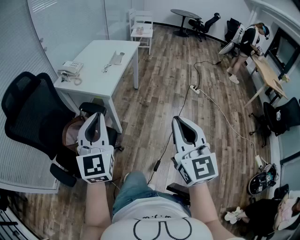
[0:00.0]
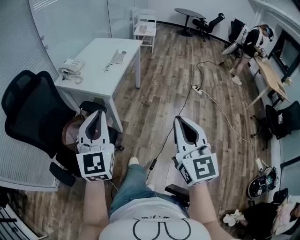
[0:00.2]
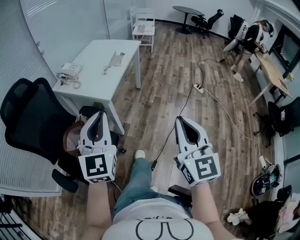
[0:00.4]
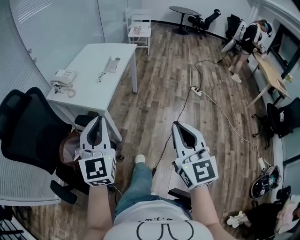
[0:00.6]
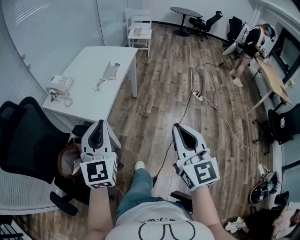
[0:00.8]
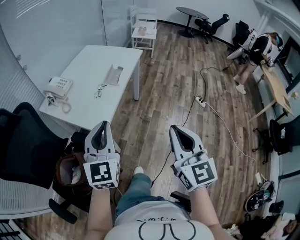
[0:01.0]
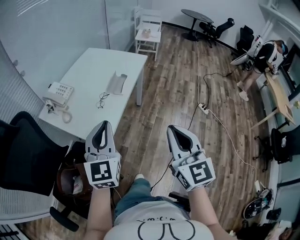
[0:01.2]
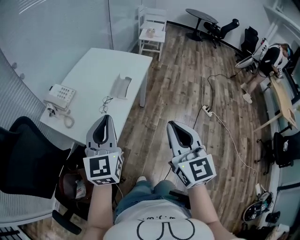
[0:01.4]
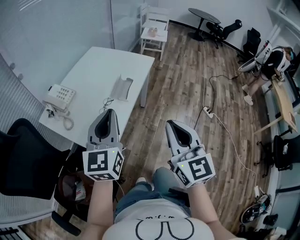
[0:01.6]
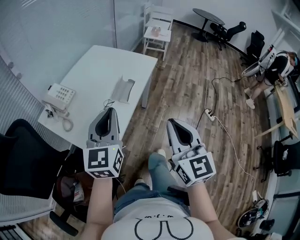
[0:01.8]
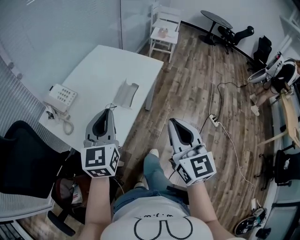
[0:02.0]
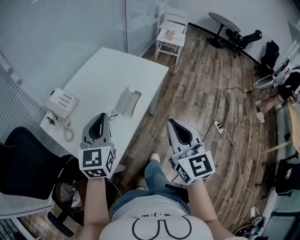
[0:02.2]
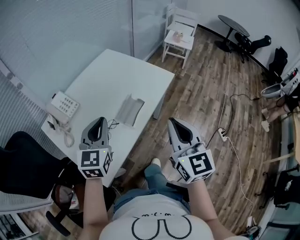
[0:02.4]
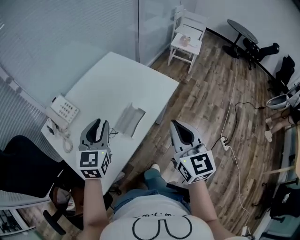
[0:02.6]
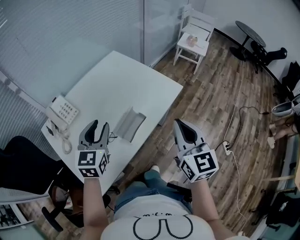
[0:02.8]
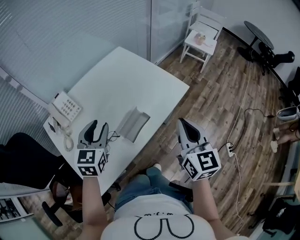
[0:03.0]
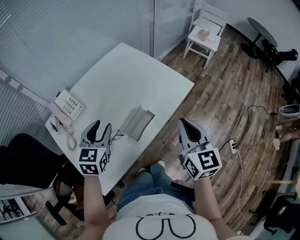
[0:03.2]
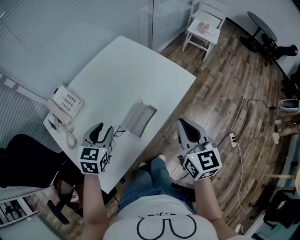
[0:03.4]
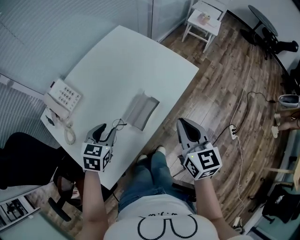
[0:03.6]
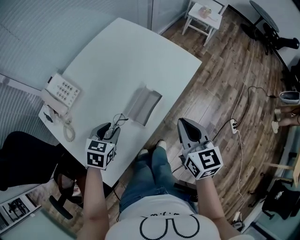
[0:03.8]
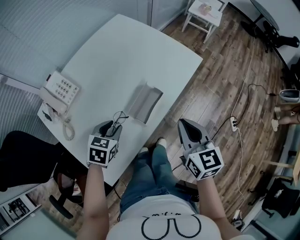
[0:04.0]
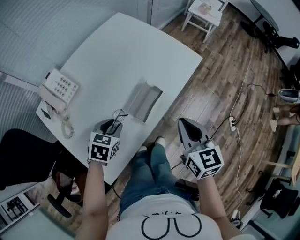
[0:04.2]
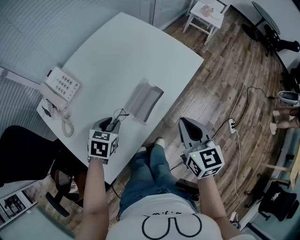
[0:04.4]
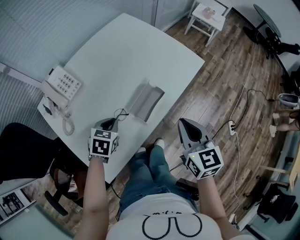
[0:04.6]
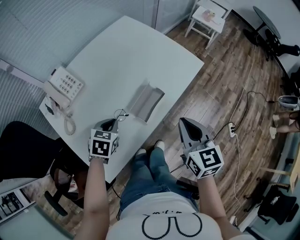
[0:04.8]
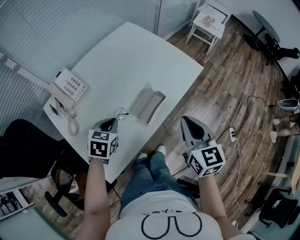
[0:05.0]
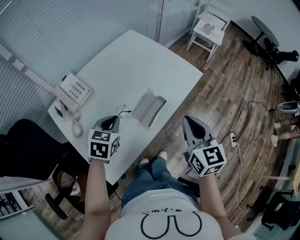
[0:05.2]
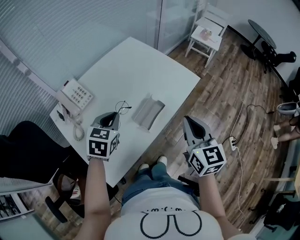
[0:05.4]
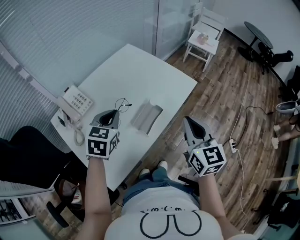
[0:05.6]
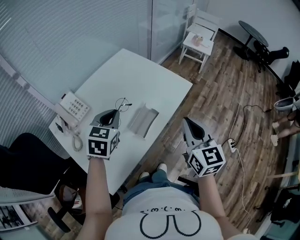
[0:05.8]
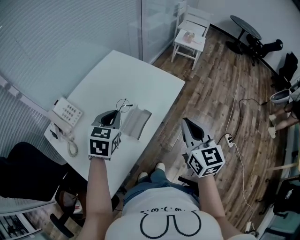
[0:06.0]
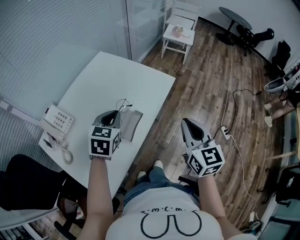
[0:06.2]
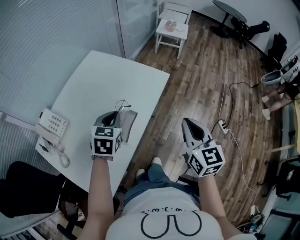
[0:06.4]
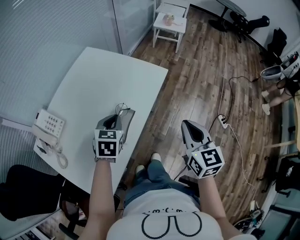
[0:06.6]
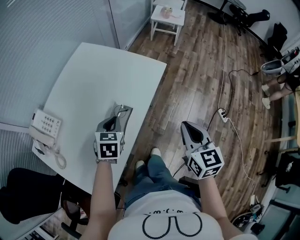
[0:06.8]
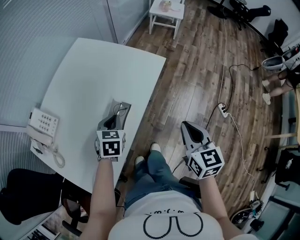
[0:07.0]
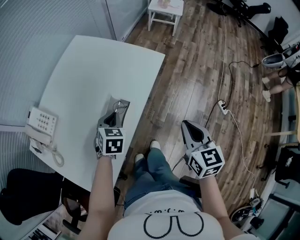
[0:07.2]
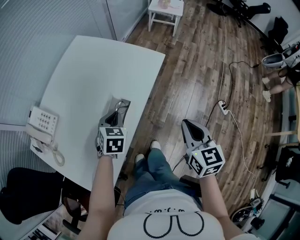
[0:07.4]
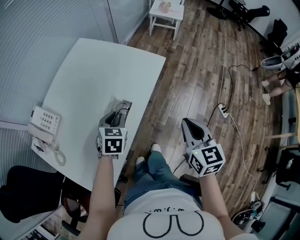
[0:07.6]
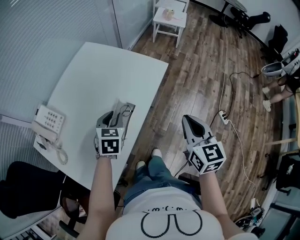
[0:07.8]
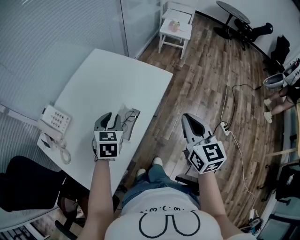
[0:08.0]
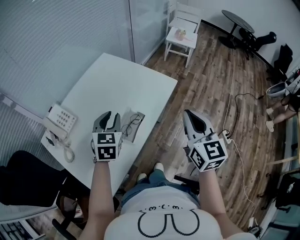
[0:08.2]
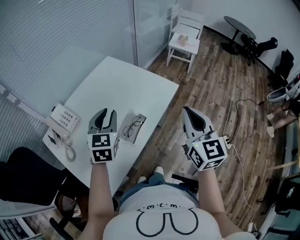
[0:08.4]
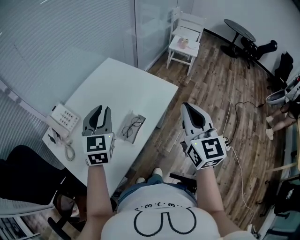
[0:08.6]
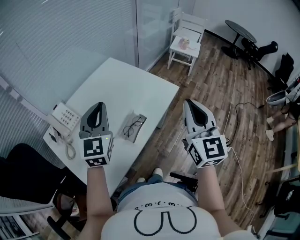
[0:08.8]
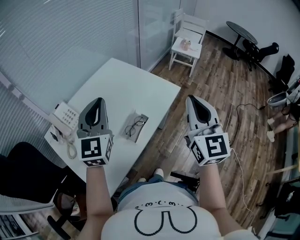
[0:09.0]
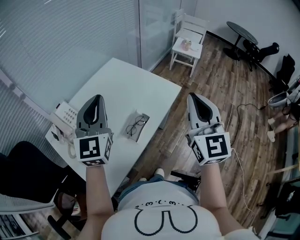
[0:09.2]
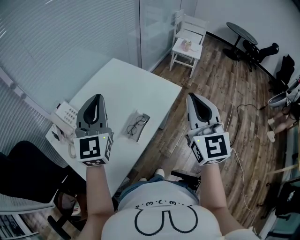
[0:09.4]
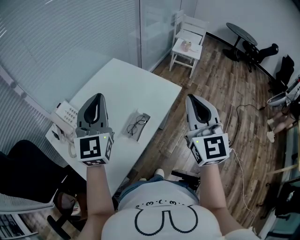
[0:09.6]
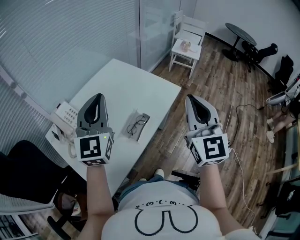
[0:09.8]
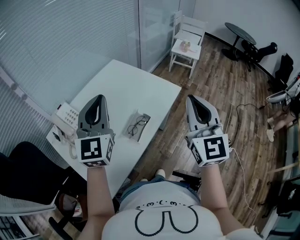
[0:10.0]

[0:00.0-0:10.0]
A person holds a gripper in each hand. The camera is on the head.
0:00.0 to 0:01.4: The pair of grippers is taken forward, roughly 50 cm.
0:01.4 to 0:02.8: The grippers both shift forward by roughly 35 cm. The left gripper rotates about 20 degrees, and opens up.
0:02.8 to 0:04.2: The left gripper travels downward by some 20 cm, and tips its fingers downward by about 30 degrees; the right gripper is displaced downward and to the left by roughly 15 cm.
0:04.2 to 0:05.8: The right gripper goes some 10 cm upward. The left gripper travels upward by about 20 cm, changes its angle by about 20 degrees, and closes its fingers.
0:05.8 to 0:07.2: The right gripper heads to the right and downward, covering about 15 cm, and changes its angle by approximately 20 degrees. Meanwhile the left gripper goes approximately 20 cm downward and to the right.
0:07.2 to 0:08.6: The two grippers go about 20 cm upward. The right gripper changes its angle by approximately 30 degrees, while the left gripper tips its fingers upward by some 40 degrees.
0:08.6 to 0:10.0: The left gripper travels upward by roughly 10 cm; the right gripper shifts by about 5 cm.

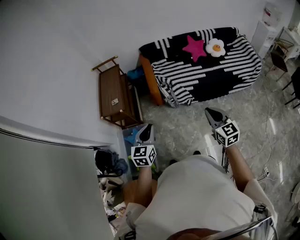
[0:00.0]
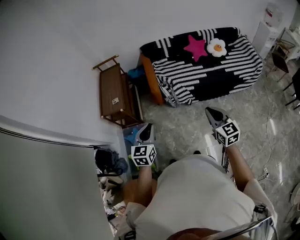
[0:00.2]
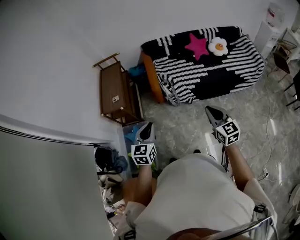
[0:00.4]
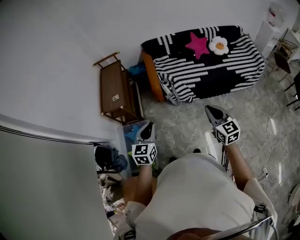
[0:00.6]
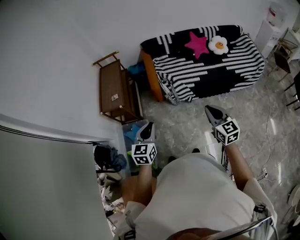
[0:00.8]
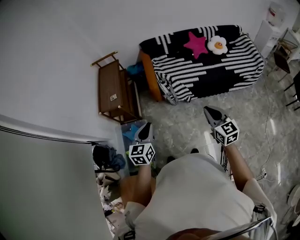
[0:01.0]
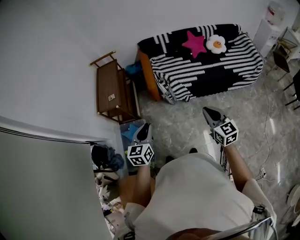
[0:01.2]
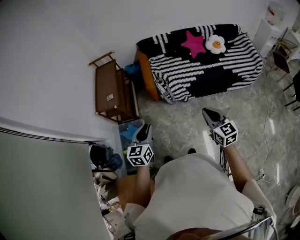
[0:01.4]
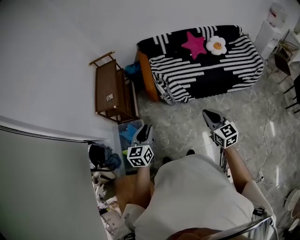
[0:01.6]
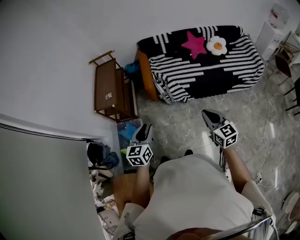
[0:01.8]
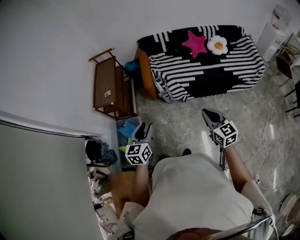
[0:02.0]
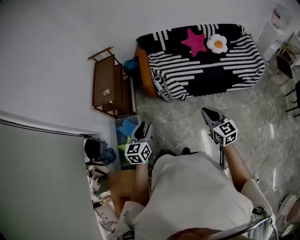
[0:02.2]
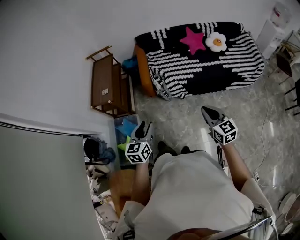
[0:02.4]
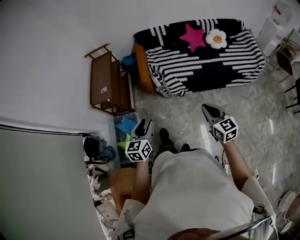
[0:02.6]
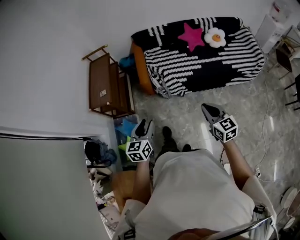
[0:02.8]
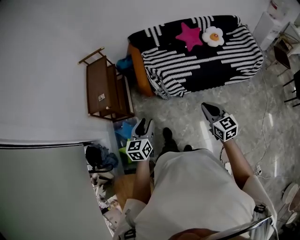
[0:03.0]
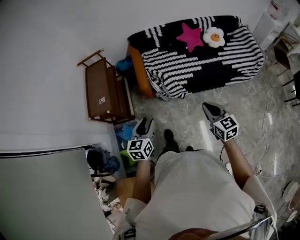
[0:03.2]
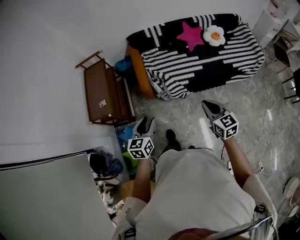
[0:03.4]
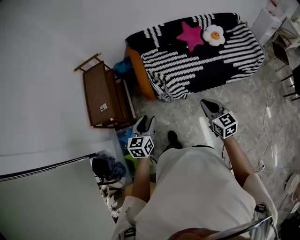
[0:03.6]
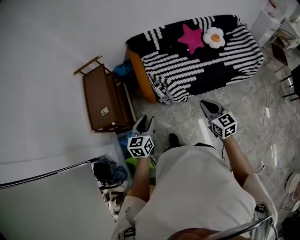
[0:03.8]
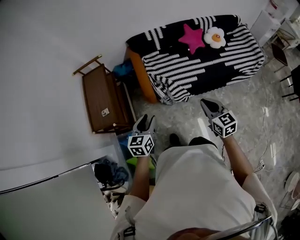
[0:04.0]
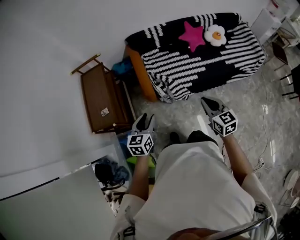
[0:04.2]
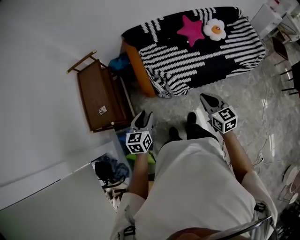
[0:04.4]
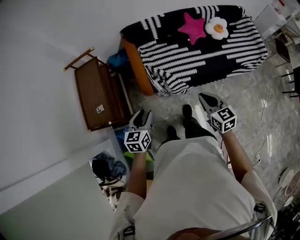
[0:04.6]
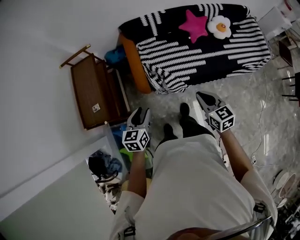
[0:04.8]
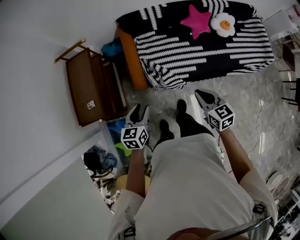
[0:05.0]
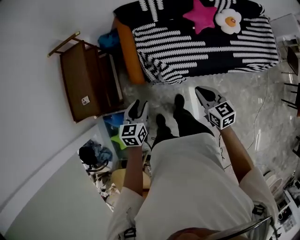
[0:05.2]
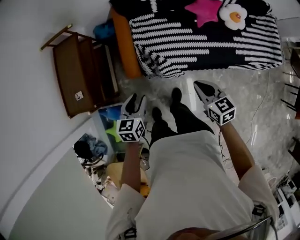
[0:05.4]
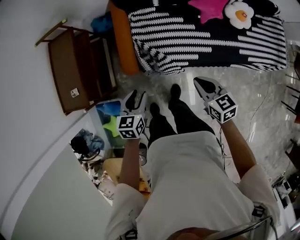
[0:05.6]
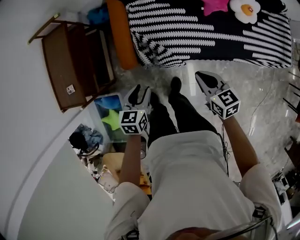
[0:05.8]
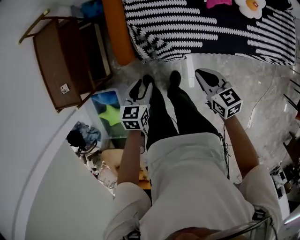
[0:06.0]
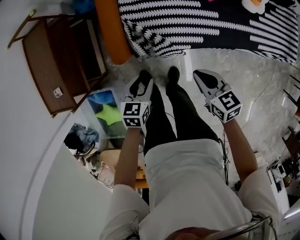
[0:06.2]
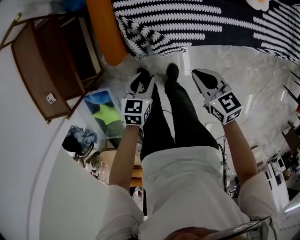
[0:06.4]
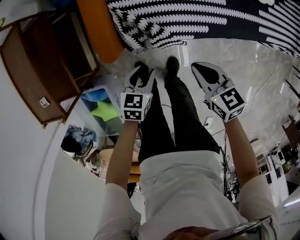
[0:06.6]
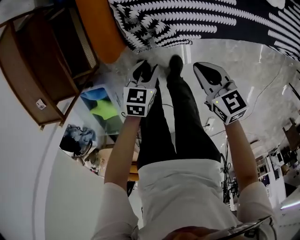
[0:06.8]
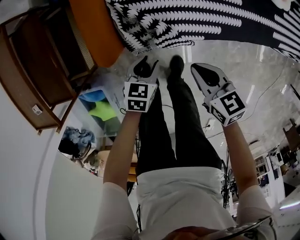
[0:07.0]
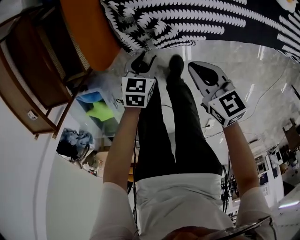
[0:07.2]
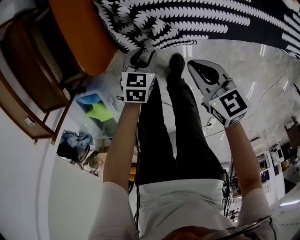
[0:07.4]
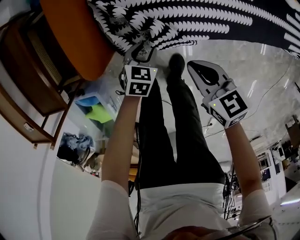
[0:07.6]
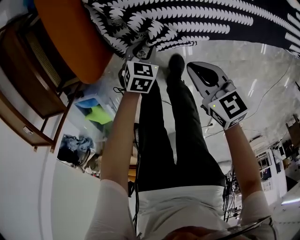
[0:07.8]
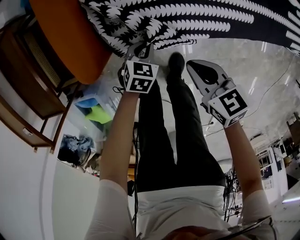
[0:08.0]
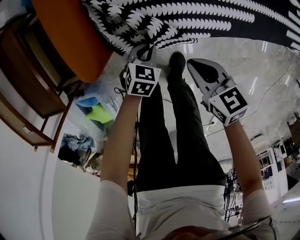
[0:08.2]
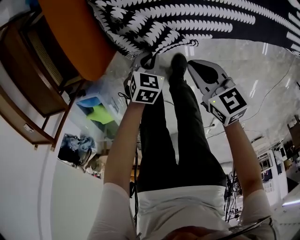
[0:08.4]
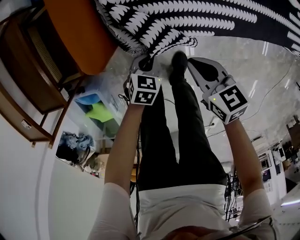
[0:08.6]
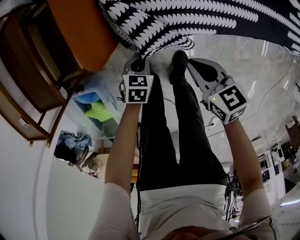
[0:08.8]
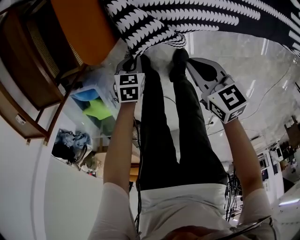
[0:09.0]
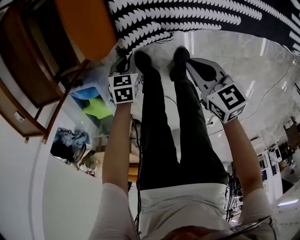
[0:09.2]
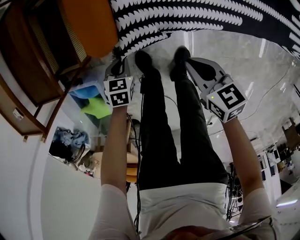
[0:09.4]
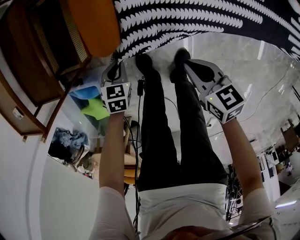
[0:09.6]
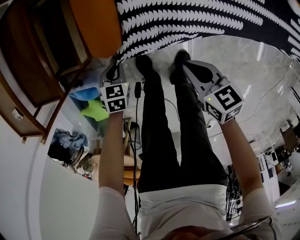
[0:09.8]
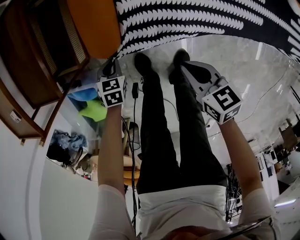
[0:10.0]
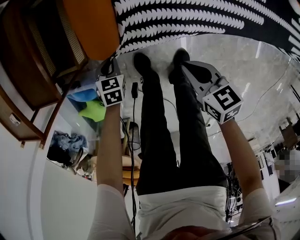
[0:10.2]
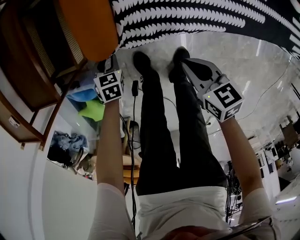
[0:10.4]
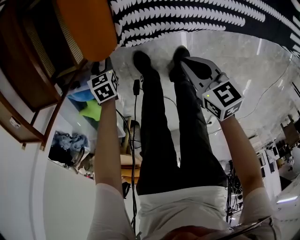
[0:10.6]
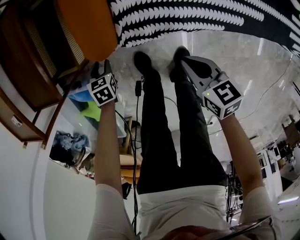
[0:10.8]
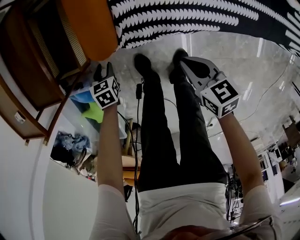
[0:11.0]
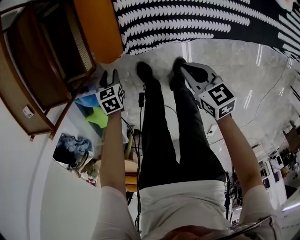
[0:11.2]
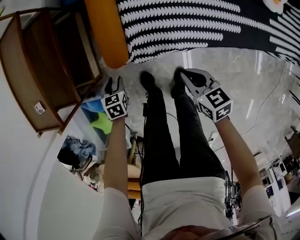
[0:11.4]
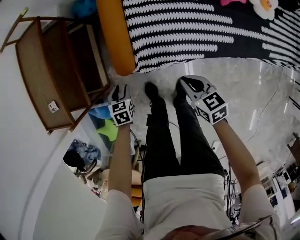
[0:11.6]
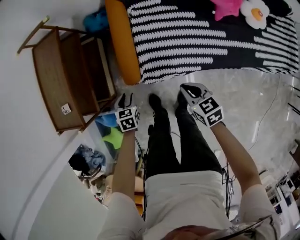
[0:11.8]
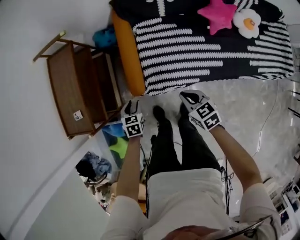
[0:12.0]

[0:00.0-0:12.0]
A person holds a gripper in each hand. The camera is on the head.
0:00.0 to 0:01.6: Both grippers travel together to the right, some 5 cm.
0:01.6 to 0:03.0: The grippers both shift forward by about 10 cm.
0:03.0 to 0:04.4: The two grippers go roughly 25 cm forward and to the left.
0:04.4 to 0:06.0: The right gripper travels downward and forward by about 35 cm, and changes its angle by about 30 degrees, while the left gripper goes some 35 cm downward, forward and to the right.
0:06.0 to 0:07.6: Both grippers move downward, some 35 cm. The left gripper swivels approximately 20 degrees.
0:07.6 to 0:09.0: The left gripper moves some 5 cm, and closes up.
0:09.0 to 0:10.4: The left gripper travels to the left and forward by about 10 cm.
0:10.4 to 0:12.0: Both grippers travel together upward, roughly 30 cm.

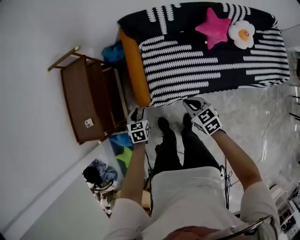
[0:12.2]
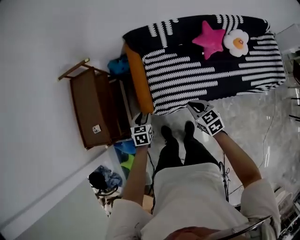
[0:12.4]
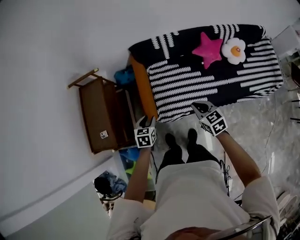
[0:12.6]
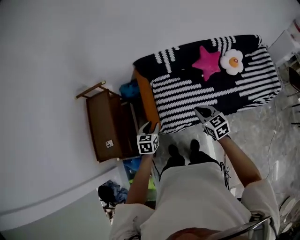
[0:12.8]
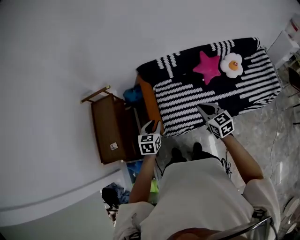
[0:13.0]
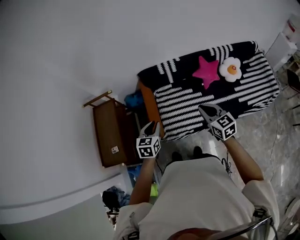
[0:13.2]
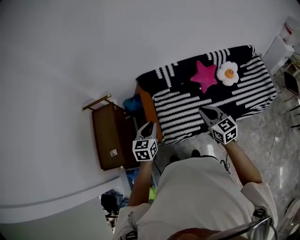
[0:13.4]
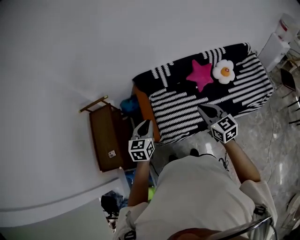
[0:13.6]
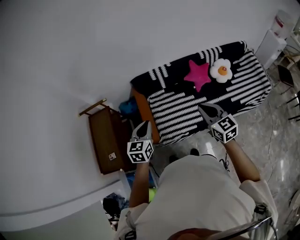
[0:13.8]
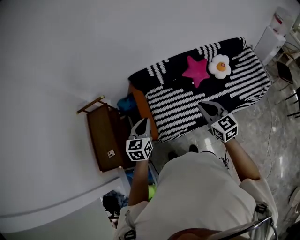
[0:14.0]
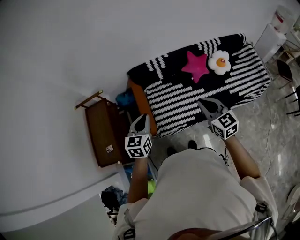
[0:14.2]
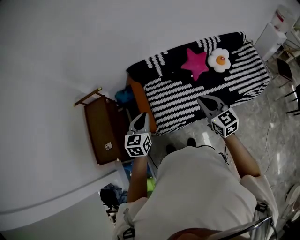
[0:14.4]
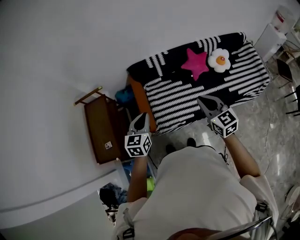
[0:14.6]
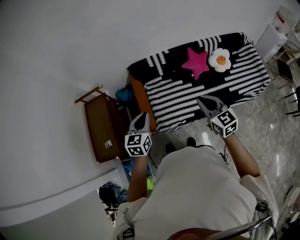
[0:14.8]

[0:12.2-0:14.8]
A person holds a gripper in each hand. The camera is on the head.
0:12.2 to 0:13.4: The two grippers go approximately 35 cm upward. The left gripper changes its angle by about 30 degrees, and closes up; the right gripper turns by about 30 degrees.
0:13.4 to 0:14.8: The grippers stay close to where they were, moving slightly.
